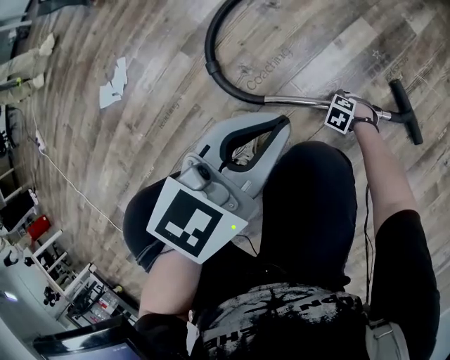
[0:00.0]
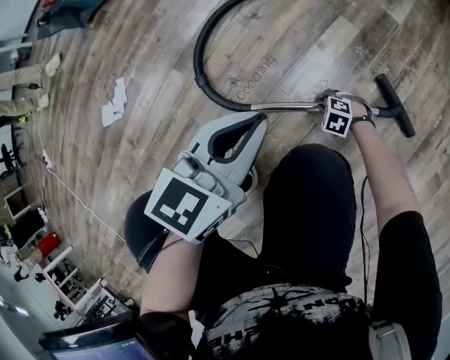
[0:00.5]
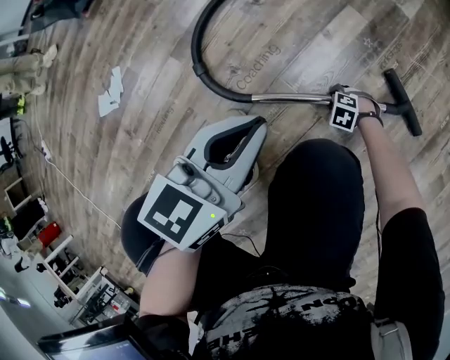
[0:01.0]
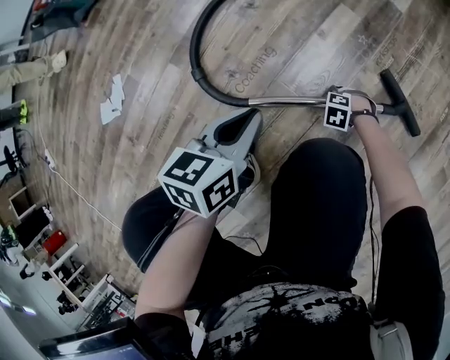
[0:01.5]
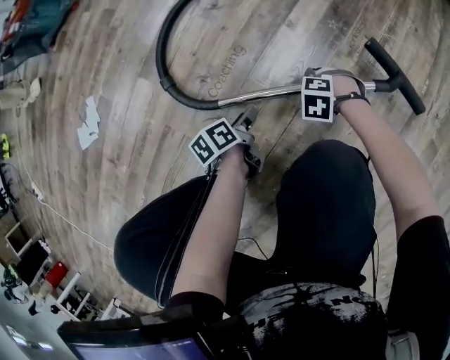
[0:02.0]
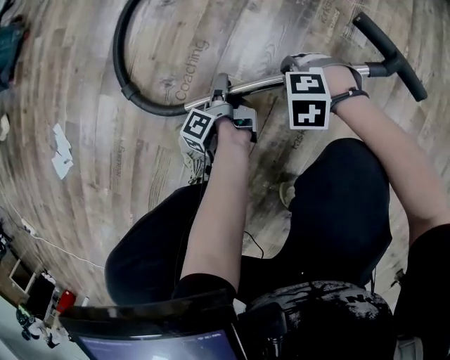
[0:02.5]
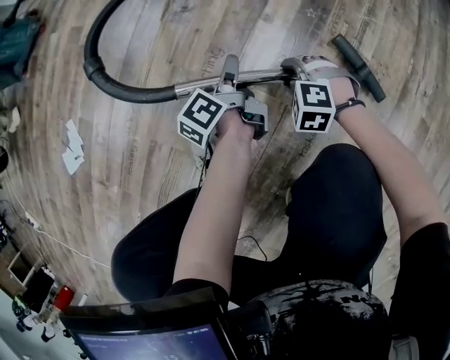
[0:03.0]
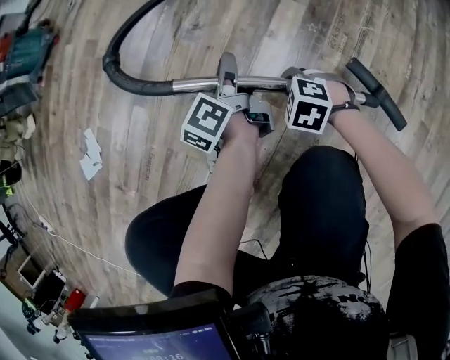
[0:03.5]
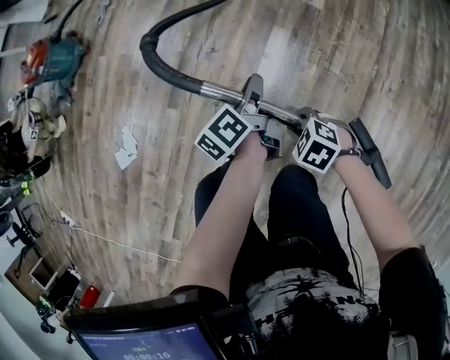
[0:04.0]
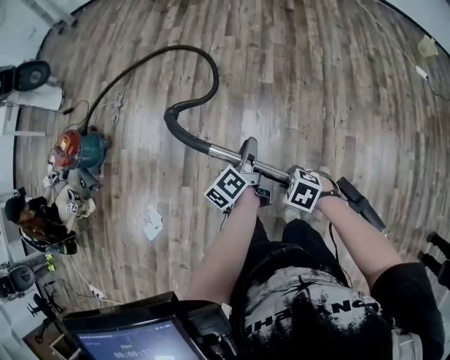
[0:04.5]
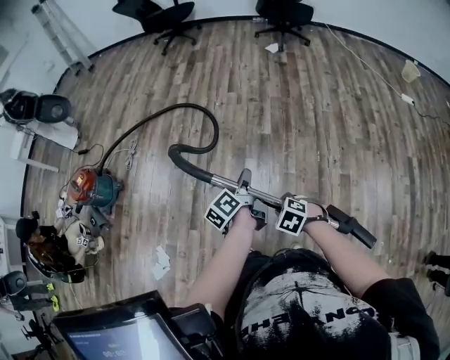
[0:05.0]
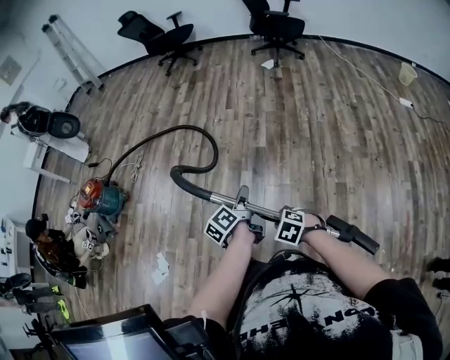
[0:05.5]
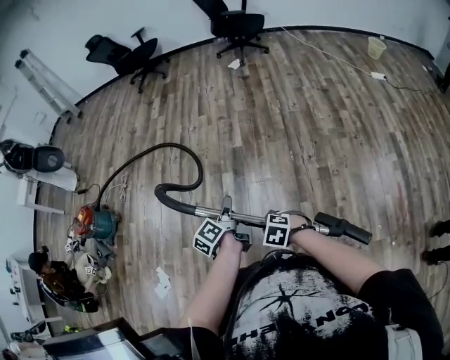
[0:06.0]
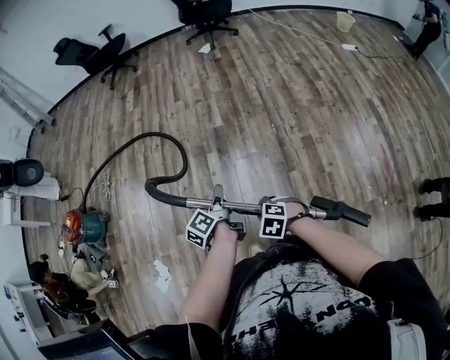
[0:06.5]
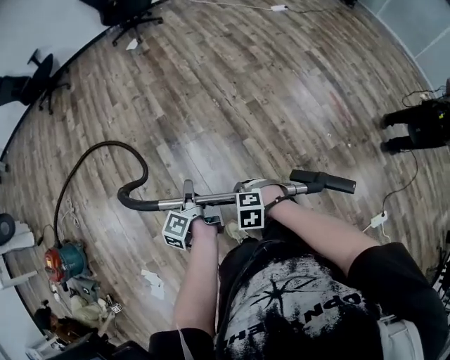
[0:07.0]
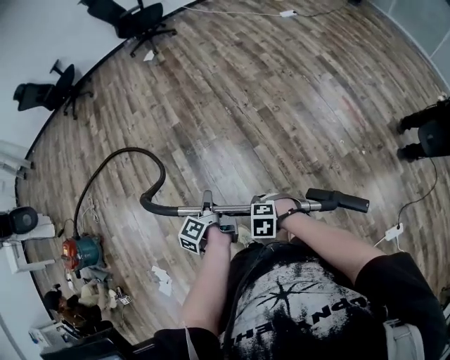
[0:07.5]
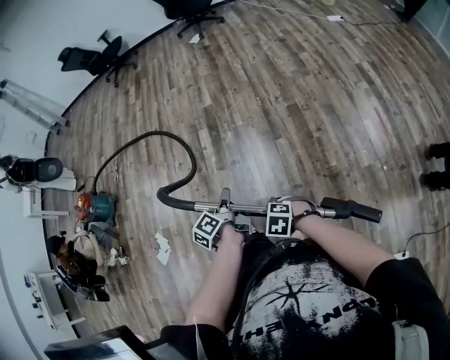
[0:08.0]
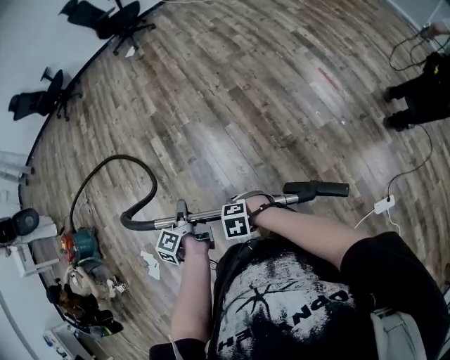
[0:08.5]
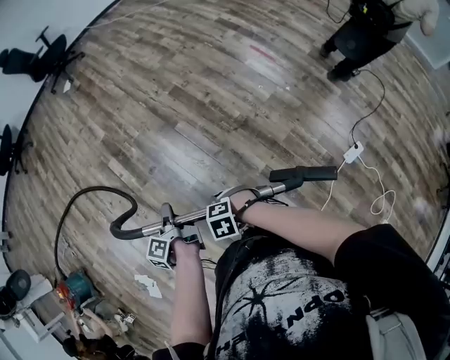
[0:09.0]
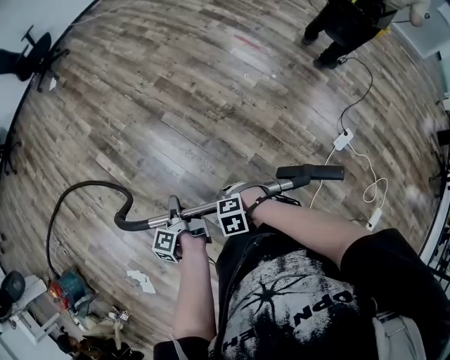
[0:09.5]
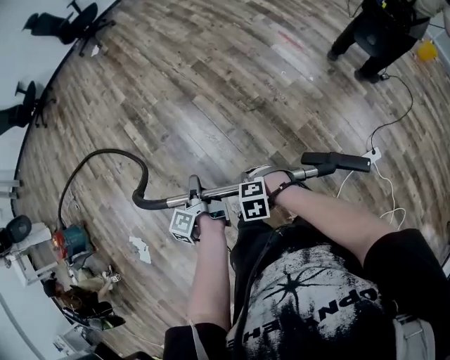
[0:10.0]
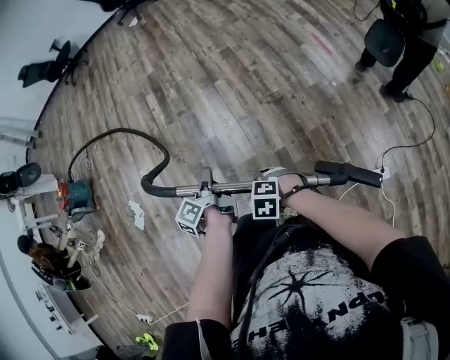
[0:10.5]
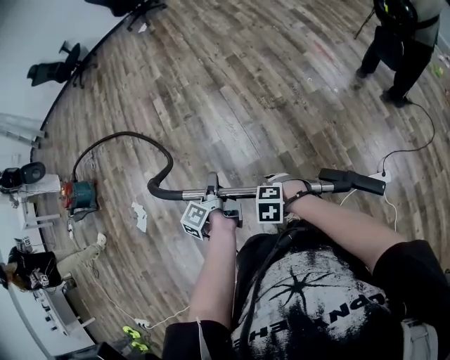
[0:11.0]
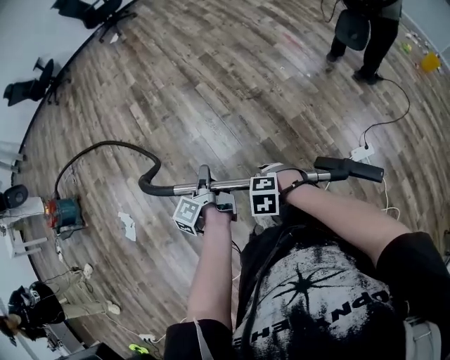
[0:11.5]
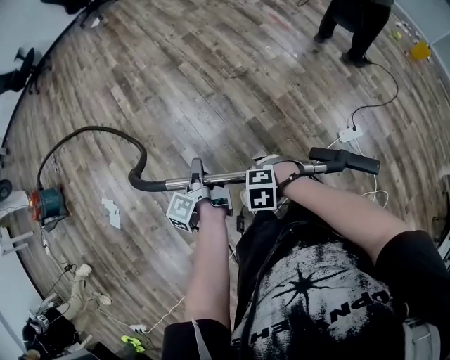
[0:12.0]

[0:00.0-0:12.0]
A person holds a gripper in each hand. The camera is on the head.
0.0 to 2.0 s: The right gripper goes up and down, roughly 10 cm each way, reversing 2 times, and closes, then reopens; the left gripper goes approximately 35 cm downward, twists about 70 degrees counterclockwise, seen from behind, and opens its fingers.
2.0 to 4.0 s: Both grippers travel together upward, roughly 40 cm. The left gripper swivels approximately 20 degrees, and closes its fingers. The right gripper swivels some 40 degrees.
4.0 to 6.0 s: The two grippers go about 30 cm upward.
6.0 to 8.0 s: The grippers both shift backward by about 35 cm.
8.0 to 10.0 s: The two grippers go some 25 cm backward.
10.0 to 12.0 s: The right gripper moves some 25 cm. Meanwhile the left gripper shifts by approximately 25 cm.

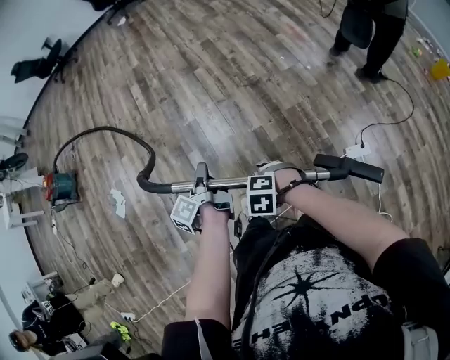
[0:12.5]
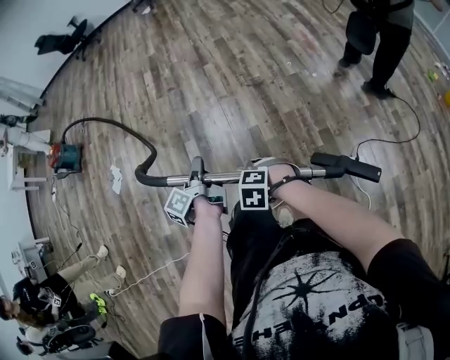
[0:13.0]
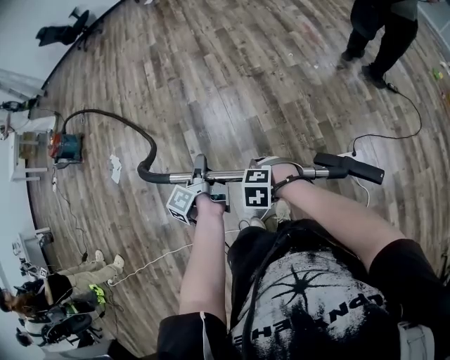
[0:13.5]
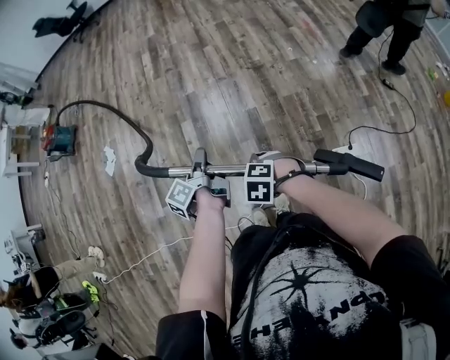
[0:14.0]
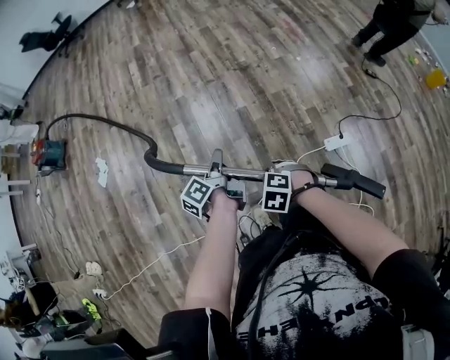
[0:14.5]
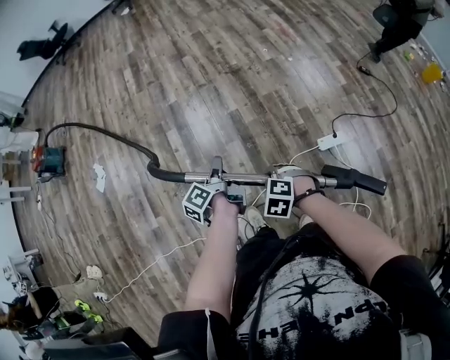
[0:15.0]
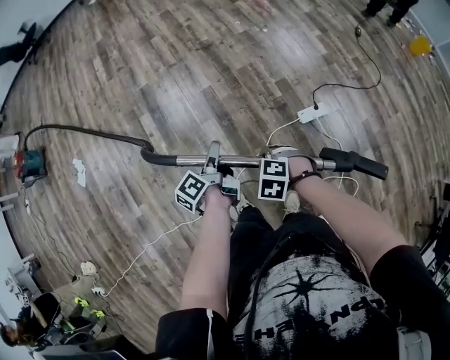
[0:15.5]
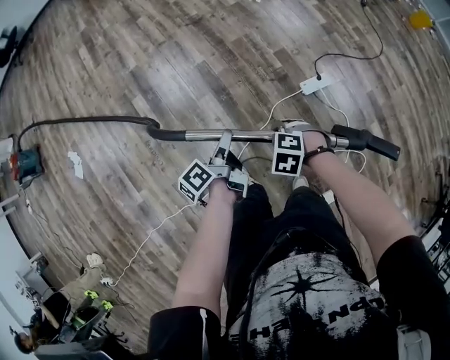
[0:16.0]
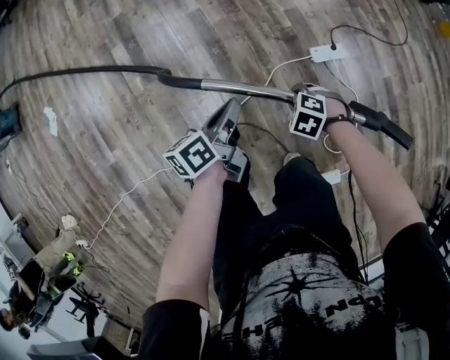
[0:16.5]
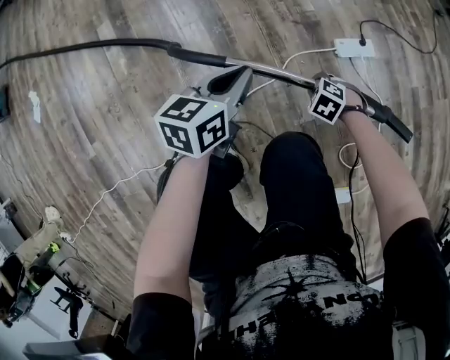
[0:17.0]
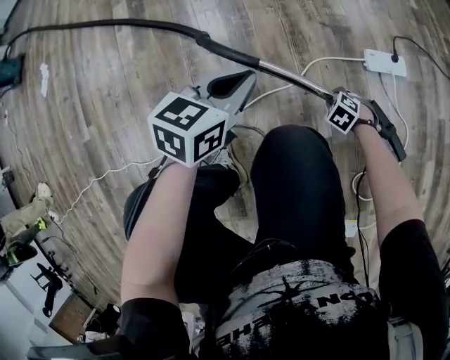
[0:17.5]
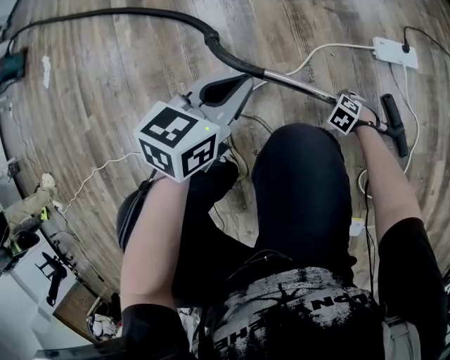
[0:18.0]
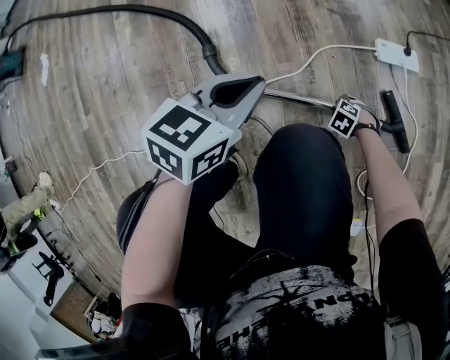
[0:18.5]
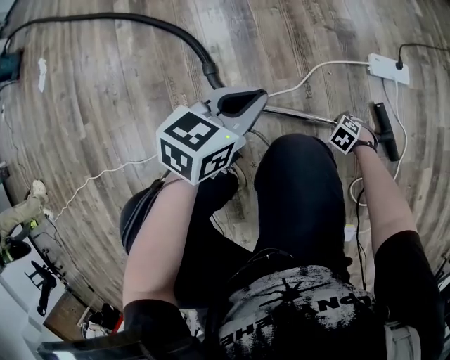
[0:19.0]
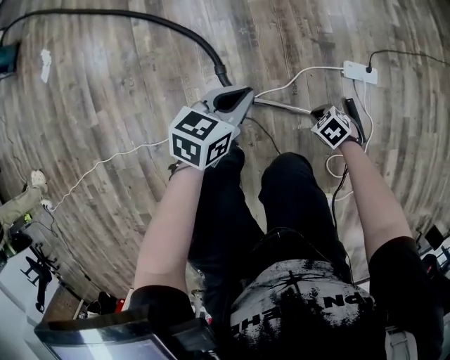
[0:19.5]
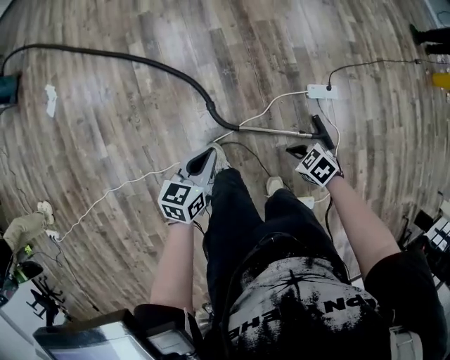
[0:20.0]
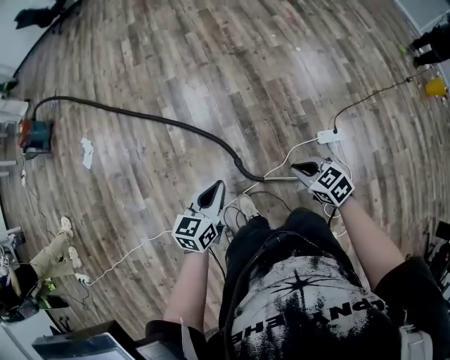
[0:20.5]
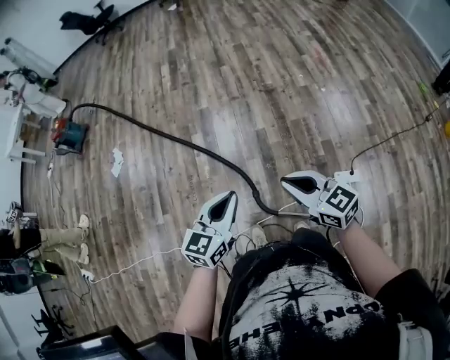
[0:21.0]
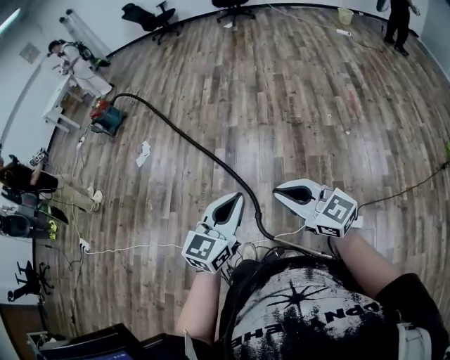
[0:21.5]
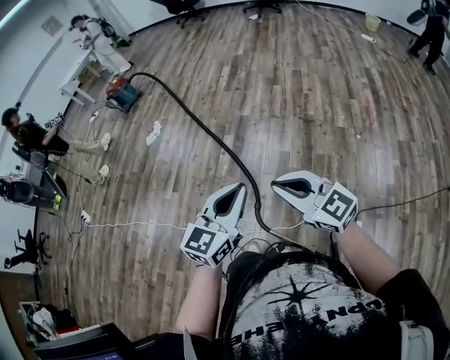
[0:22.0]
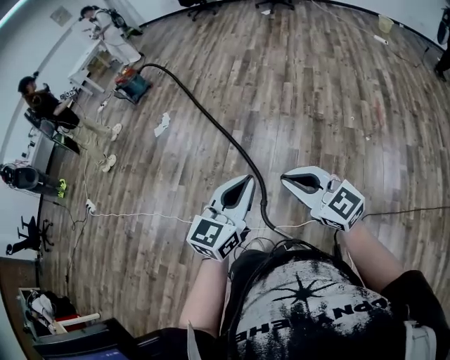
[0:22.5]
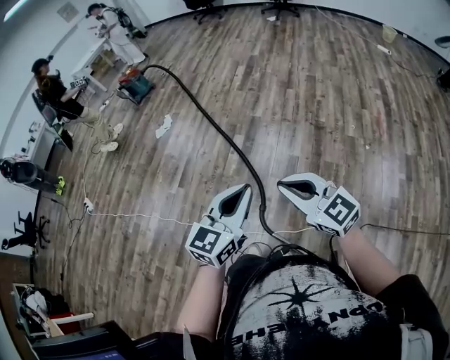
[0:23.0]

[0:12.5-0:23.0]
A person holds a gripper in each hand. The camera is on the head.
12.5 to 14.5 s: The left gripper moves approximately 20 cm; the right gripper ends up about 20 cm from where it was.
14.5 to 16.5 s: The right gripper is displaced downward by approximately 25 cm, while the left gripper changes place by roughly 30 cm, rotates some 40 degrees, and opens, then closes again.
16.5 to 19.0 s: The left gripper travels downward by approximately 25 cm, and twists about 40 degrees clockwise, seen from behind; the right gripper moves downward, about 50 cm, and opens, then closes again.
19.0 to 21.0 s: The left gripper shifts approximately 60 cm upward, and changes its angle by some 30 degrees; the right gripper moves upward, approximately 90 cm, and tilts its fingers roughly 70 degrees upward.
21.0 to 23.0 s: The right gripper is displaced upward by approximately 10 cm, and turns by some 30 degrees. The left gripper is displaced upward, backward and to the right by roughly 15 cm, and swivels some 20 degrees.

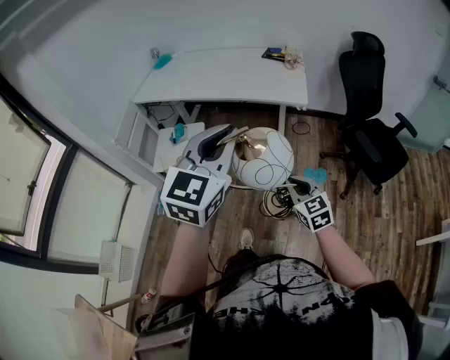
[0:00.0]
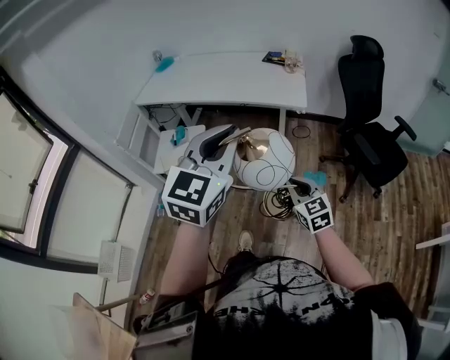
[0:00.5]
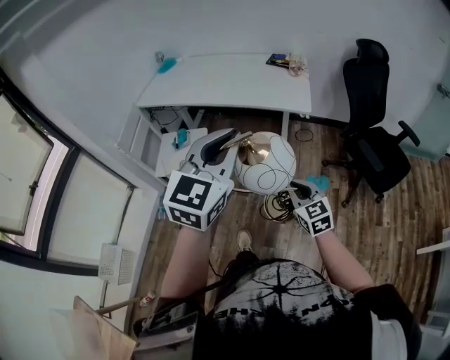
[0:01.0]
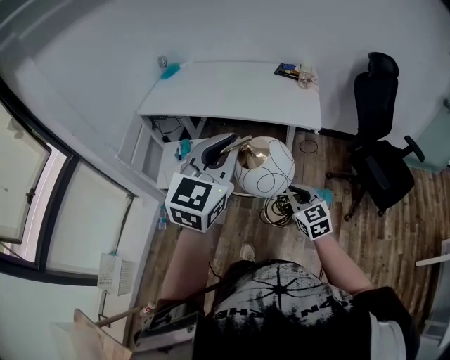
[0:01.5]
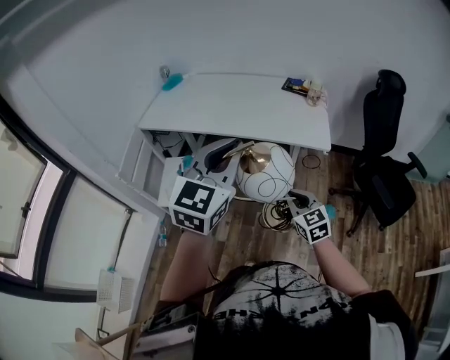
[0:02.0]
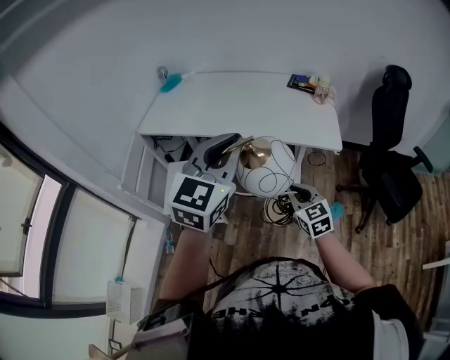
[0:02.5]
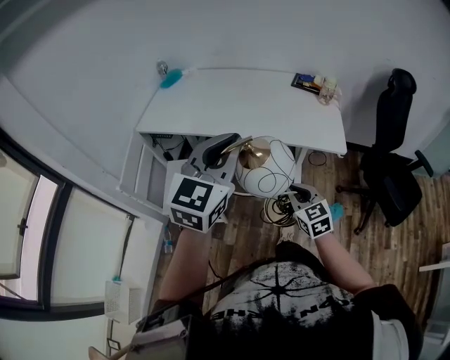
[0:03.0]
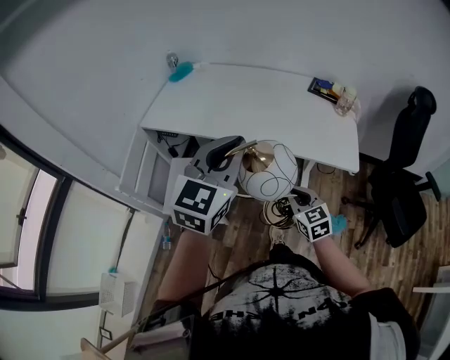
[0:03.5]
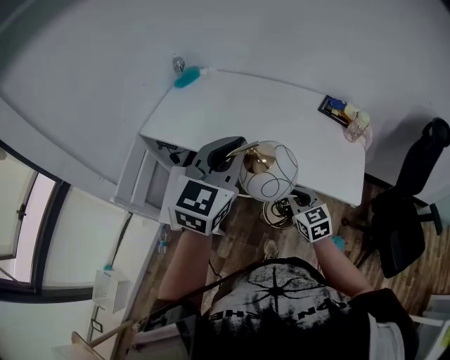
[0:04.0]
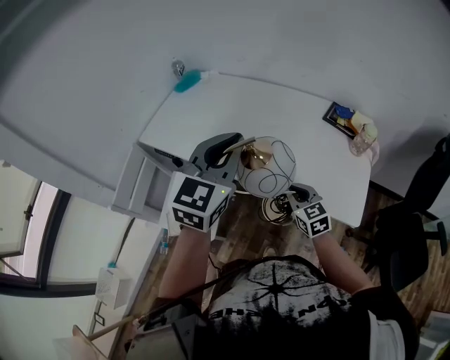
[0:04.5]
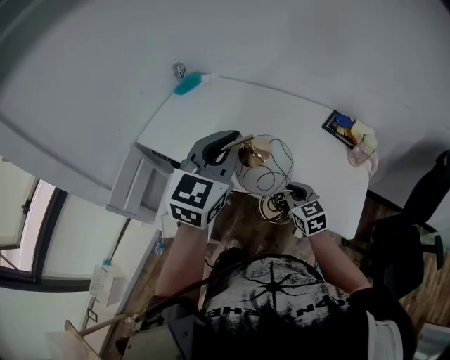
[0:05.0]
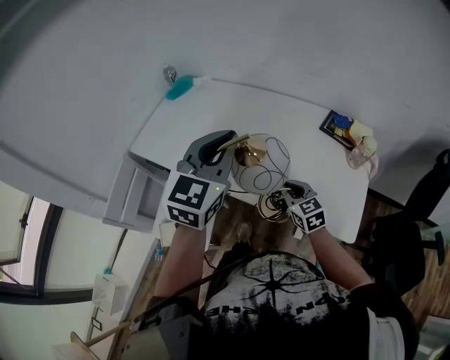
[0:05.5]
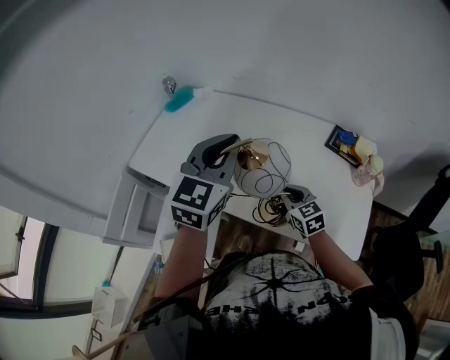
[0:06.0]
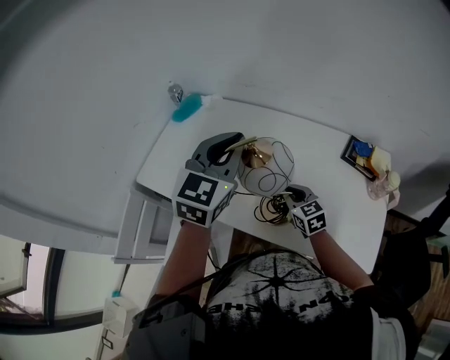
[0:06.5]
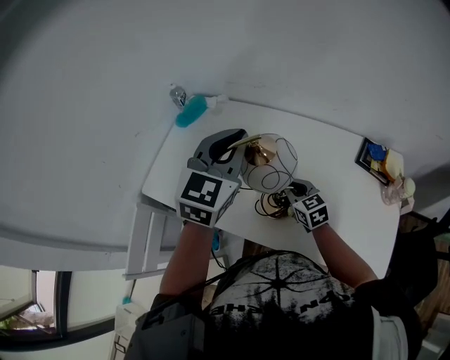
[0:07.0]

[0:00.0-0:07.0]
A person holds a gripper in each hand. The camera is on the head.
0.0 to 2.0 s: The grippers both shift forward and to the left by some 20 cm.
2.0 to 3.5 s: Both grippers move forward and to the left, about 20 cm.
3.5 to 5.0 s: The left gripper goes roughly 25 cm forward and to the right, while the right gripper heads forward, covering about 25 cm.
5.0 to 7.0 s: The right gripper shifts about 30 cm forward and to the left; the left gripper shifts roughly 30 cm forward.
